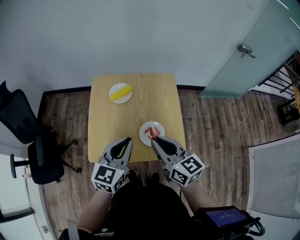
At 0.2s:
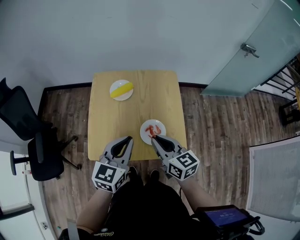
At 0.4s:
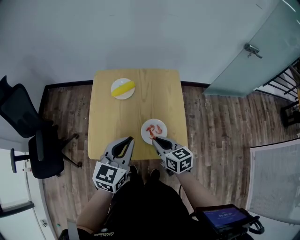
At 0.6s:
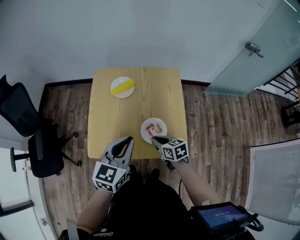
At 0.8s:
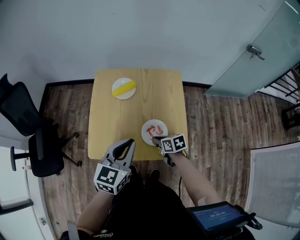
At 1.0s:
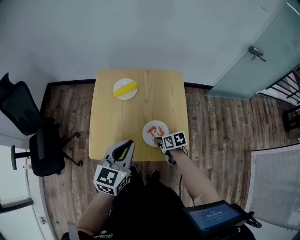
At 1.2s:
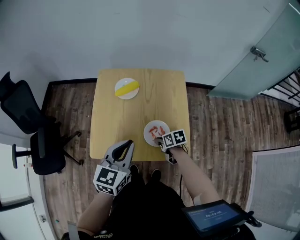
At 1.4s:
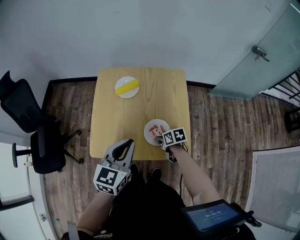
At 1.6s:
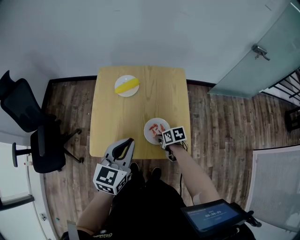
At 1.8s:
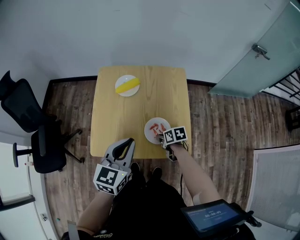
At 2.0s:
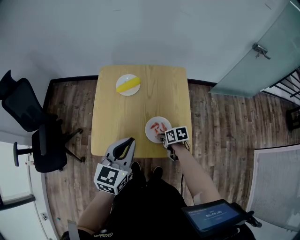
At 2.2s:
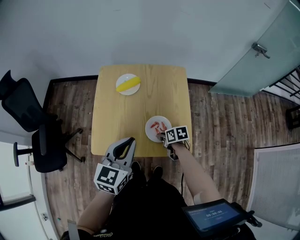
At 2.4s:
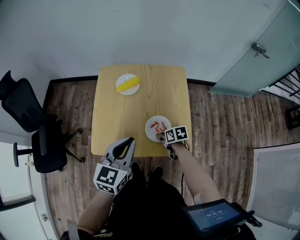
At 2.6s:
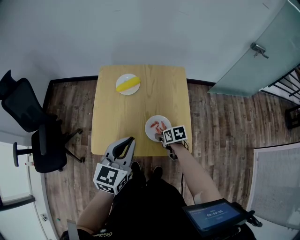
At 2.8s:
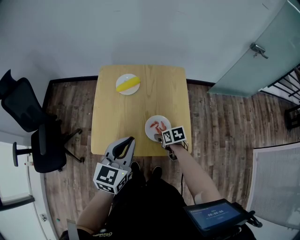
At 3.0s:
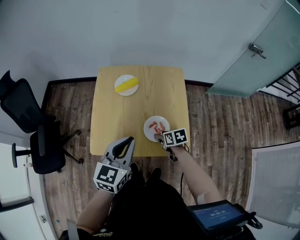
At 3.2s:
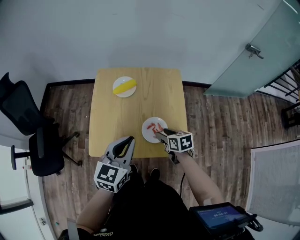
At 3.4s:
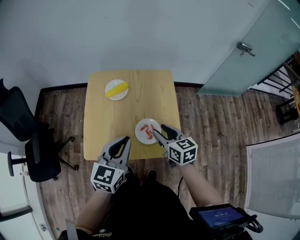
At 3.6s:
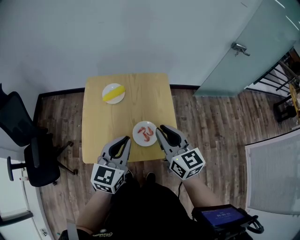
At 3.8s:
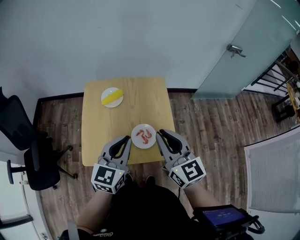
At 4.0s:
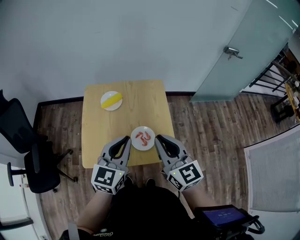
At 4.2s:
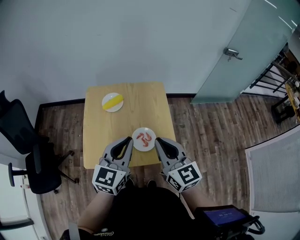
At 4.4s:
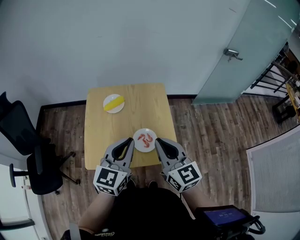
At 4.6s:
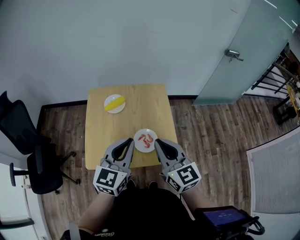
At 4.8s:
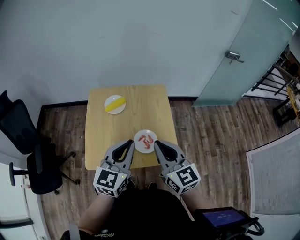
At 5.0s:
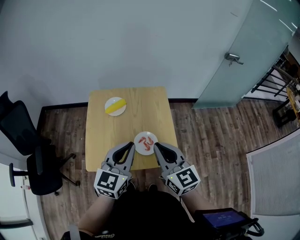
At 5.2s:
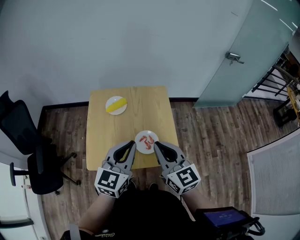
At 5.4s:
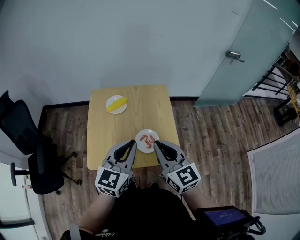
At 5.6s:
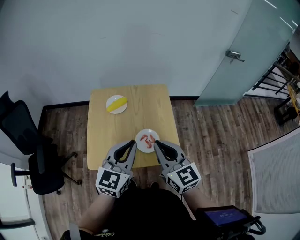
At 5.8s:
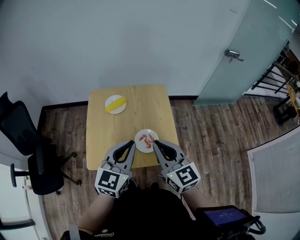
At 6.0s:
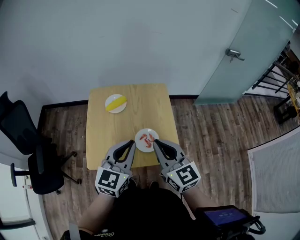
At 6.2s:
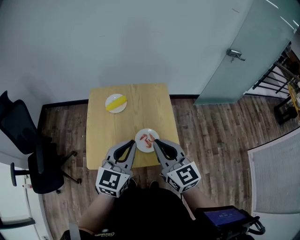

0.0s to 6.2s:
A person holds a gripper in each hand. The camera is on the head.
0.0s to 1.6s: The right gripper is displaced downward by approximately 30 cm, and tilts its fingers approximately 40 degrees downward.
1.6s to 3.2s: The right gripper heads upward, covering approximately 10 cm, rotates approximately 20 degrees, and opens its fingers.
3.2s to 4.6s: The left gripper shifts approximately 5 cm upward. The right gripper is displaced upward by approximately 25 cm, tilts its fingers roughly 40 degrees upward, and closes up.
4.6s to 6.2s: The two grippers keep their place.

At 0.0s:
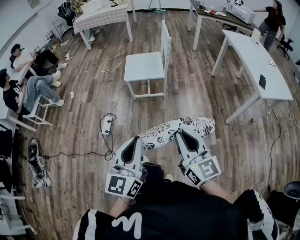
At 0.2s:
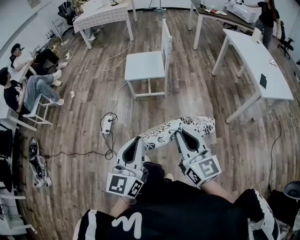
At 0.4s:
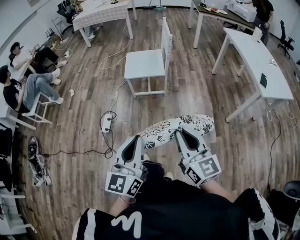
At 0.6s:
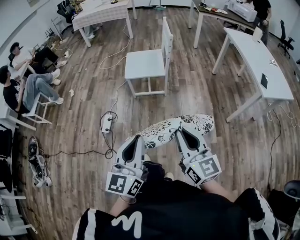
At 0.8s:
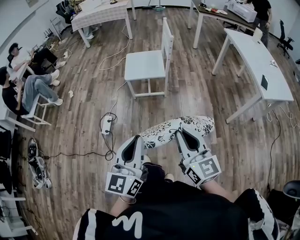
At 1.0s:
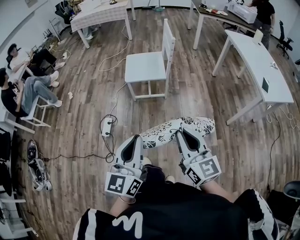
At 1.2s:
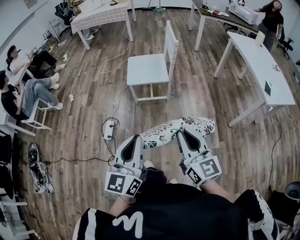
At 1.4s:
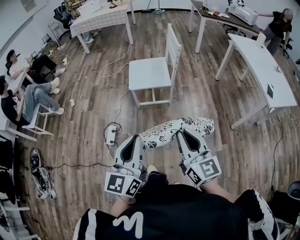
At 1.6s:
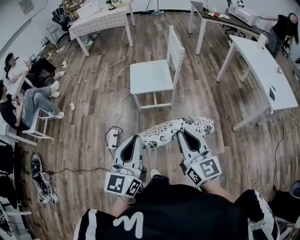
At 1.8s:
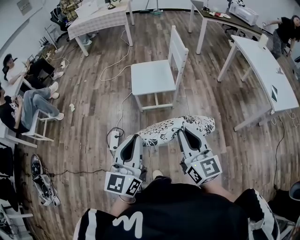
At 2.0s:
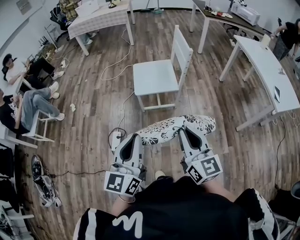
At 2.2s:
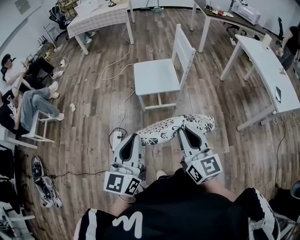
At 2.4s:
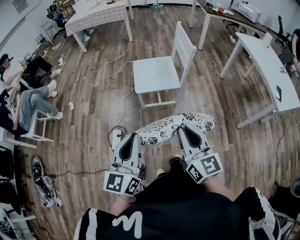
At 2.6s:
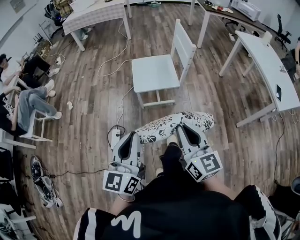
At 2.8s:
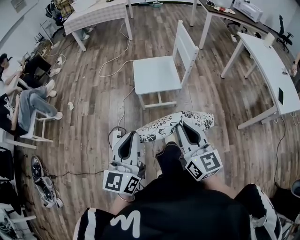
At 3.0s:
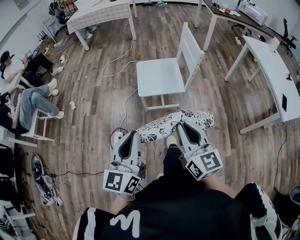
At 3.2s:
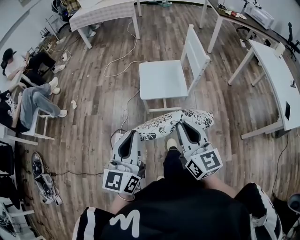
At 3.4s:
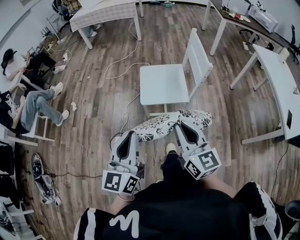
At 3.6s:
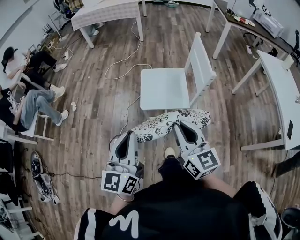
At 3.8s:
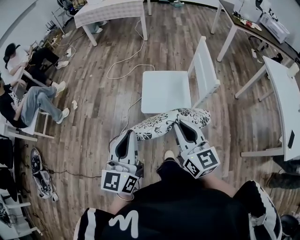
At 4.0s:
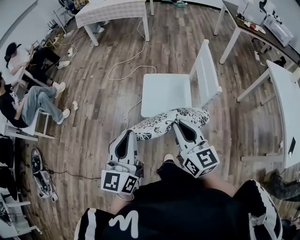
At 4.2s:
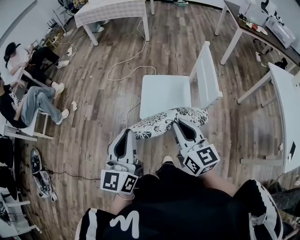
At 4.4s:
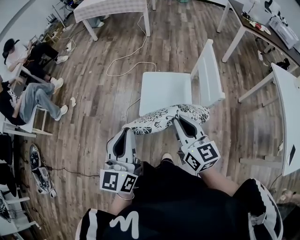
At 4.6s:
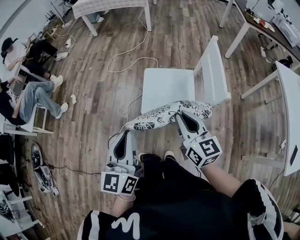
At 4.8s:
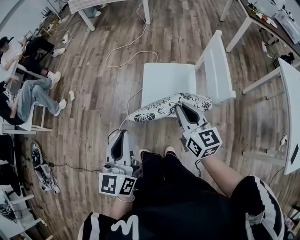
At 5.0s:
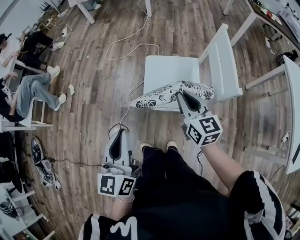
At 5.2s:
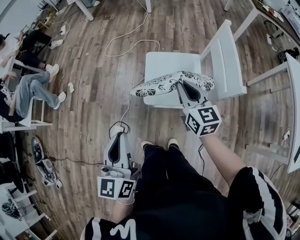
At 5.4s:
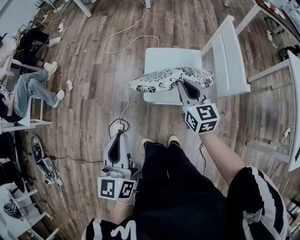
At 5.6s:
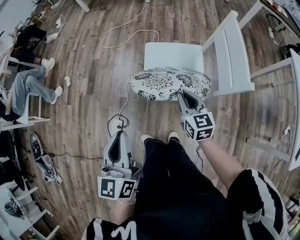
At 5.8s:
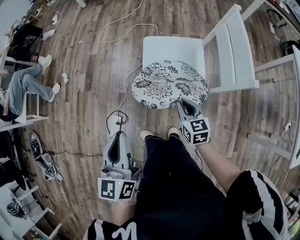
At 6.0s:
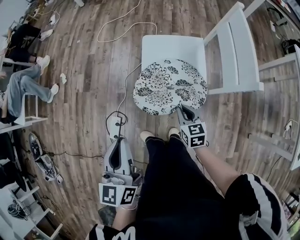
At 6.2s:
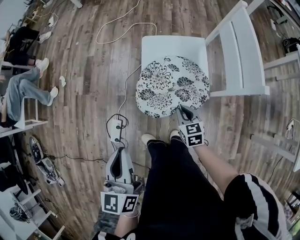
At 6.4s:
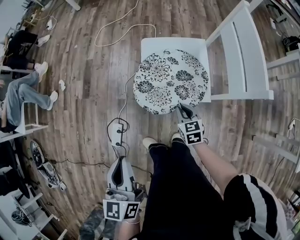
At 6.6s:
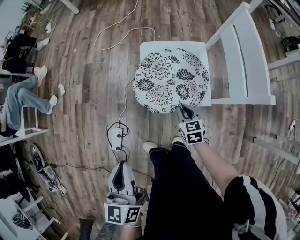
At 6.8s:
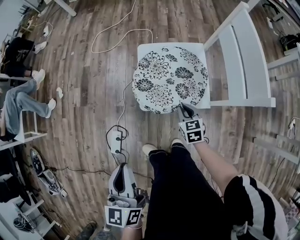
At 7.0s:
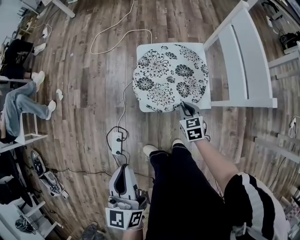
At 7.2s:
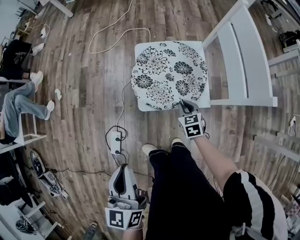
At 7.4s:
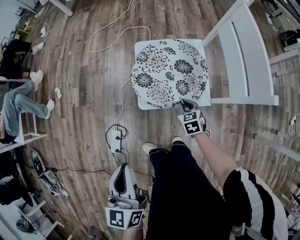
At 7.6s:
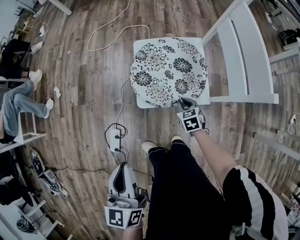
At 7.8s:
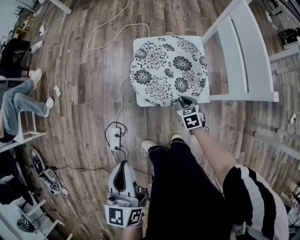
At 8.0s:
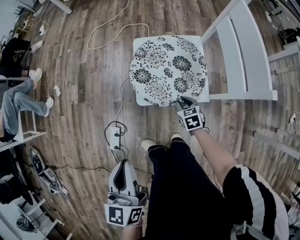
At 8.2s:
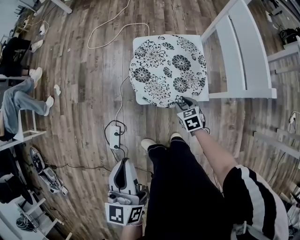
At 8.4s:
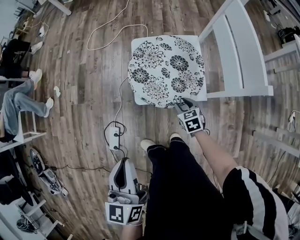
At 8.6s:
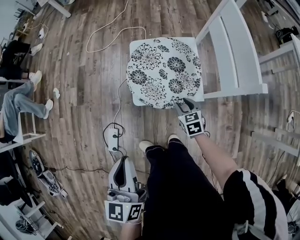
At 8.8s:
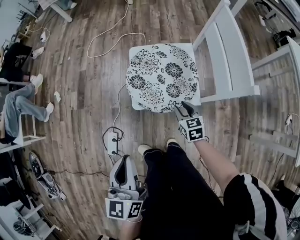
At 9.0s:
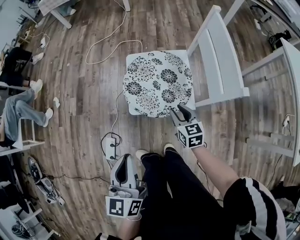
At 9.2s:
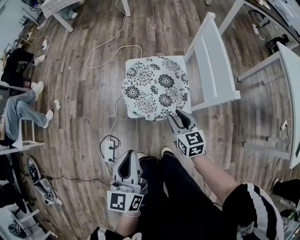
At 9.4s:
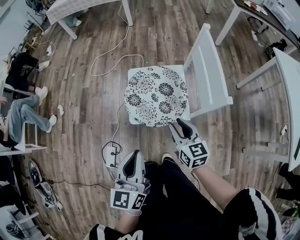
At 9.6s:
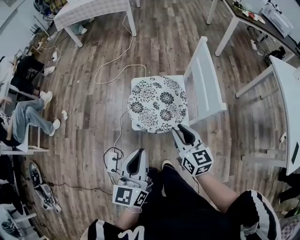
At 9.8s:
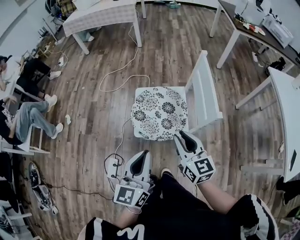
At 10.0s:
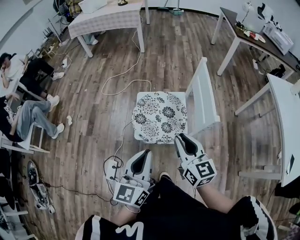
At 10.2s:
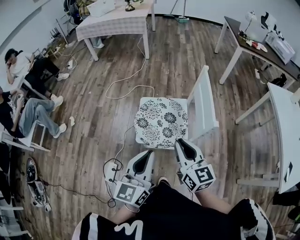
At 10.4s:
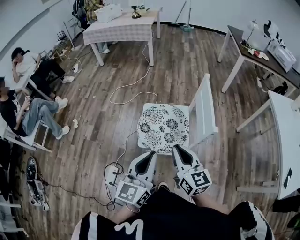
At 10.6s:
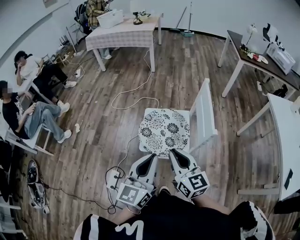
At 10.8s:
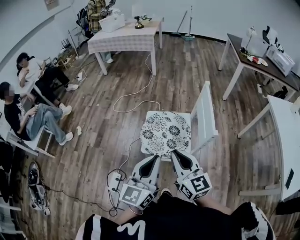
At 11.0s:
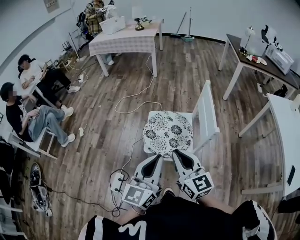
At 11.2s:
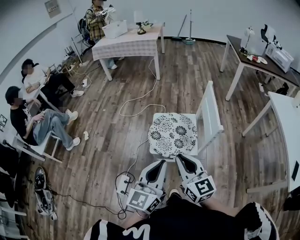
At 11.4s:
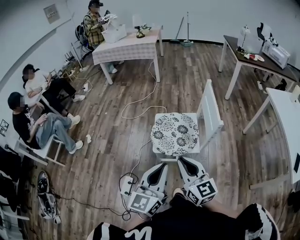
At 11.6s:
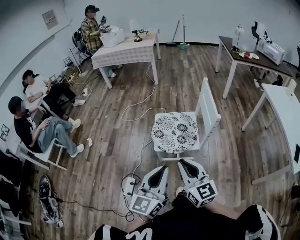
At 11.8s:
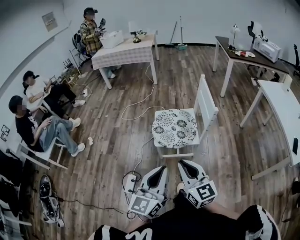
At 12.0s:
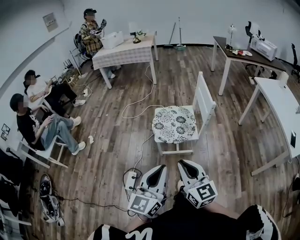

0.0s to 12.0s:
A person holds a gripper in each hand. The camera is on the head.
0.0s to 1.6s: Both grippers travel together forward and to the left, some 15 cm.
1.6s to 3.0s: Both grippers travel together forward and to the left, roughly 15 cm.
3.0s to 4.4s: The grippers both shift forward by some 25 cm.
4.4s to 6.0s: The right gripper shifts about 30 cm downward, and tips its fingers downward by some 30 degrees; the left gripper moves downward and to the left, some 15 cm.
6.0s to 7.6s: The right gripper heads downward and forward, covering approximately 15 cm.
7.6s to 9.0s: The right gripper goes some 15 cm upward, changes its angle by some 20 degrees, and opens up. The left gripper travels to the right by roughly 5 cm.
9.0s to 10.4s: The left gripper travels upward and to the right by about 15 cm, and swivels some 20 degrees, while the right gripper is displaced upward by some 30 cm, turns by some 30 degrees, and closes up.
10.4s to 12.0s: The grippers both shift backward by some 25 cm.

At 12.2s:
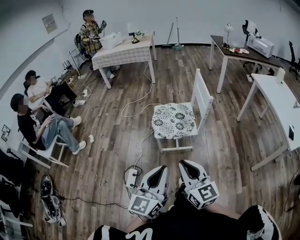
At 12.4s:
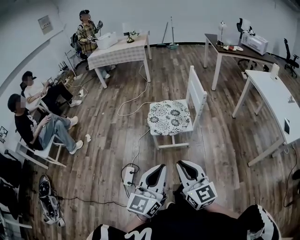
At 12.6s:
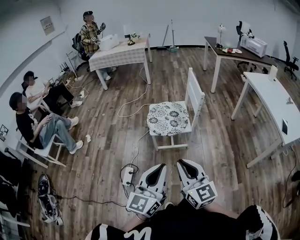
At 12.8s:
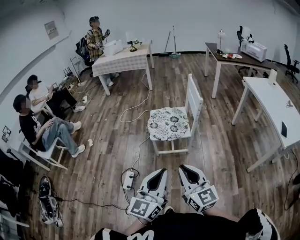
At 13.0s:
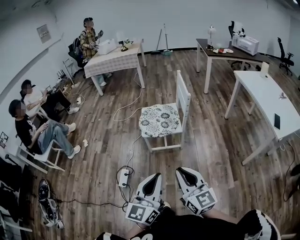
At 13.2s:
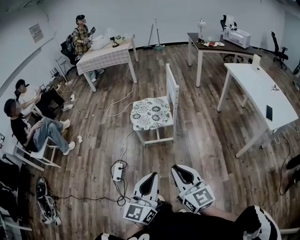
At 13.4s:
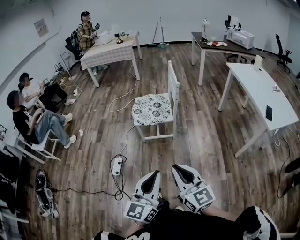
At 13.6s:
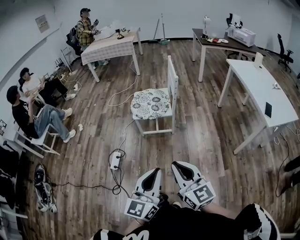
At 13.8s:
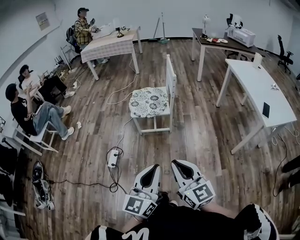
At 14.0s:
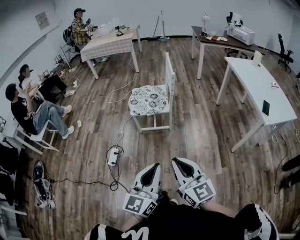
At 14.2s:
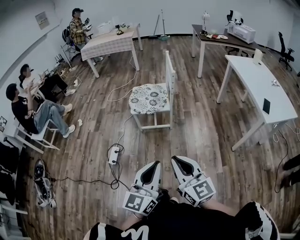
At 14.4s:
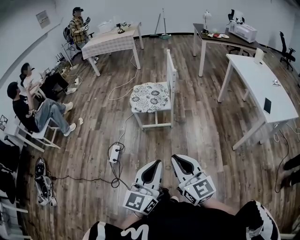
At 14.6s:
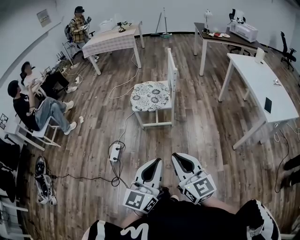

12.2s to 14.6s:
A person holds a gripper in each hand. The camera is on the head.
12.2s to 13.4s: Both grippers move backward and to the right, roughly 20 cm.
13.4s to 14.6s: The grippers stay close to where they were, moving slightly.

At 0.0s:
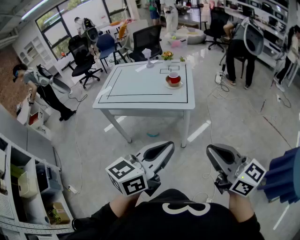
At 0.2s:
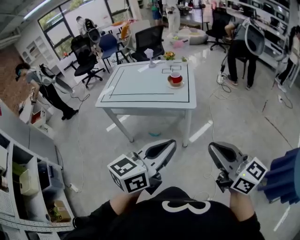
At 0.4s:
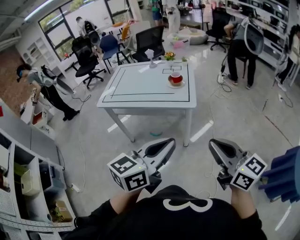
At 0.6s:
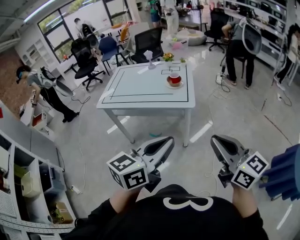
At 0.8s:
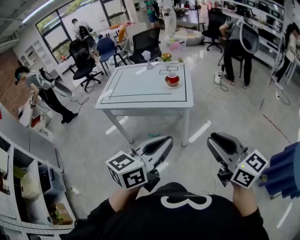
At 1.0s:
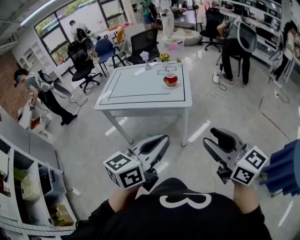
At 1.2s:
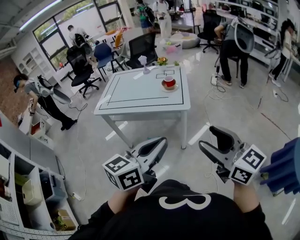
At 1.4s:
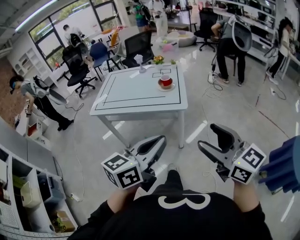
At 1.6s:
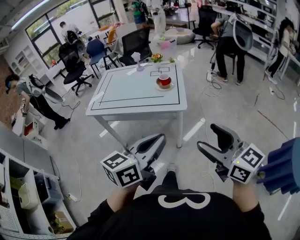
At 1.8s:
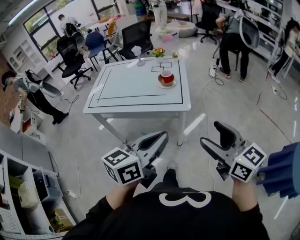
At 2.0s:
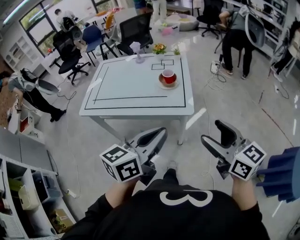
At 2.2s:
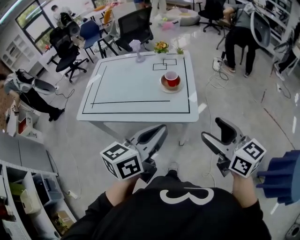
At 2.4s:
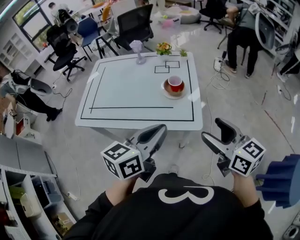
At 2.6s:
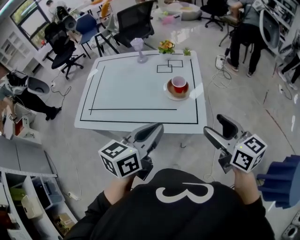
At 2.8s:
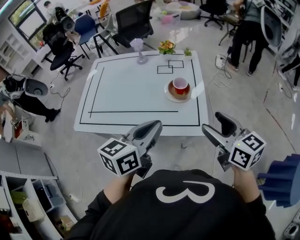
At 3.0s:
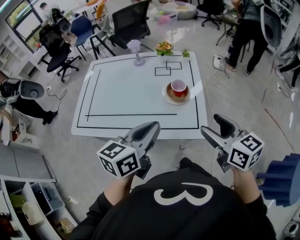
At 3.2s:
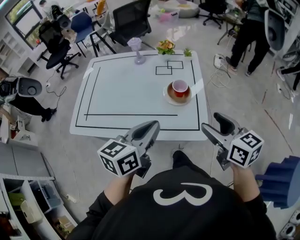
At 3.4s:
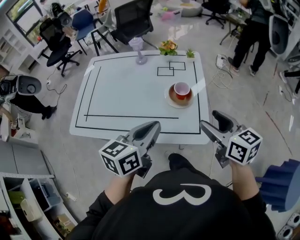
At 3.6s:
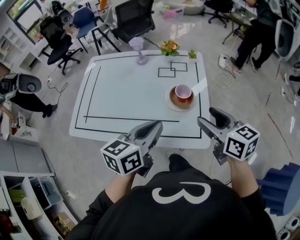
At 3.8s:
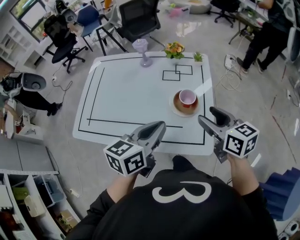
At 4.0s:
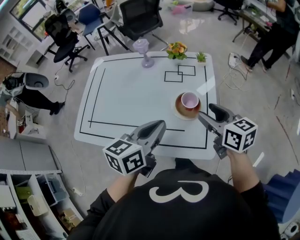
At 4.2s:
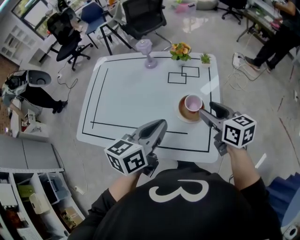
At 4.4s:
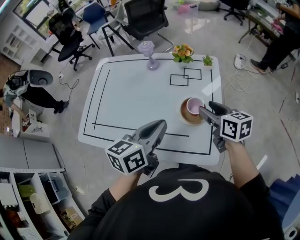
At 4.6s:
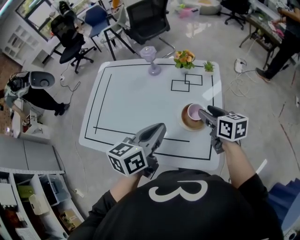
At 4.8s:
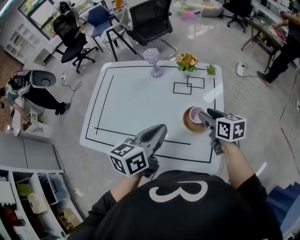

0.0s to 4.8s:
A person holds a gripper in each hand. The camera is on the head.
0.0s to 1.6s: The right gripper opens up.
1.6s to 3.2s: The grippers both shift forward by some 35 cm. The right gripper rotates some 20 degrees.
3.2s to 4.8s: The right gripper moves forward and downward, some 25 cm, while the left gripper is displaced forward by some 15 cm.
